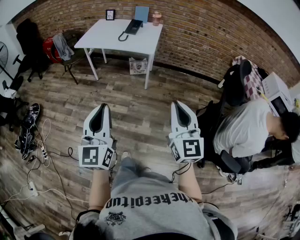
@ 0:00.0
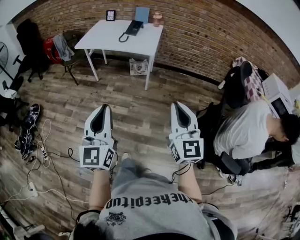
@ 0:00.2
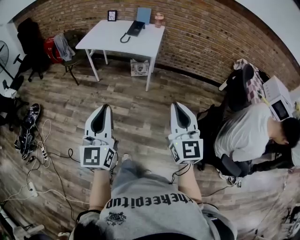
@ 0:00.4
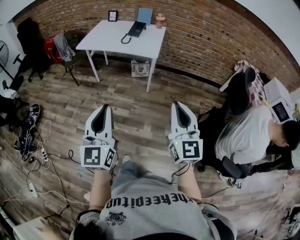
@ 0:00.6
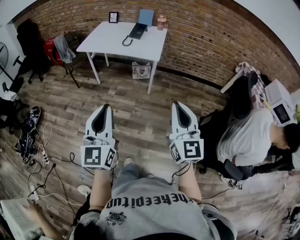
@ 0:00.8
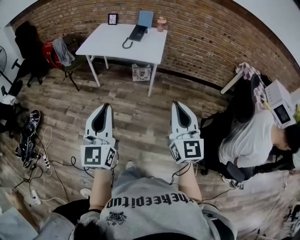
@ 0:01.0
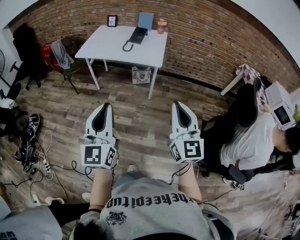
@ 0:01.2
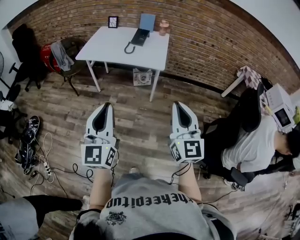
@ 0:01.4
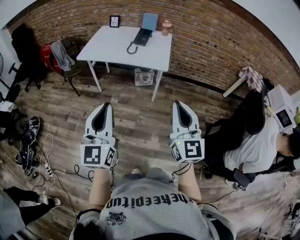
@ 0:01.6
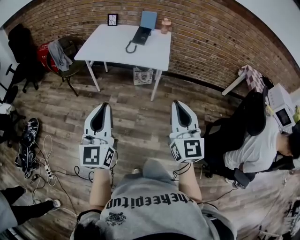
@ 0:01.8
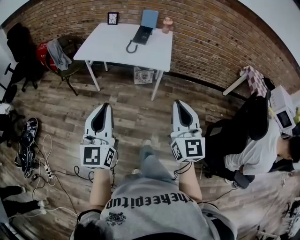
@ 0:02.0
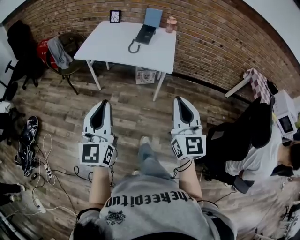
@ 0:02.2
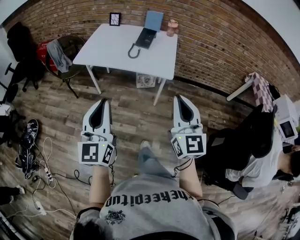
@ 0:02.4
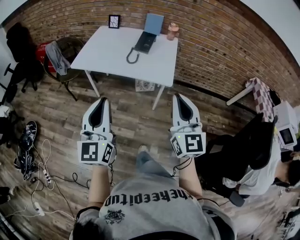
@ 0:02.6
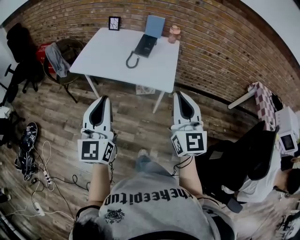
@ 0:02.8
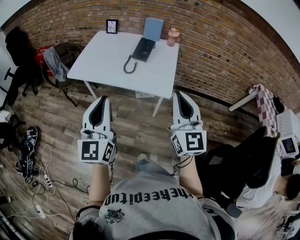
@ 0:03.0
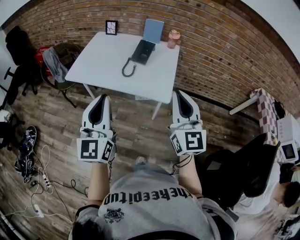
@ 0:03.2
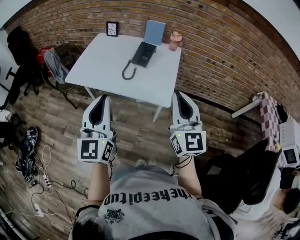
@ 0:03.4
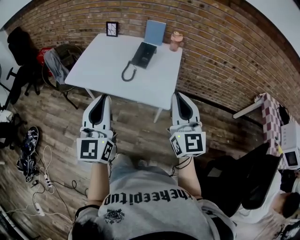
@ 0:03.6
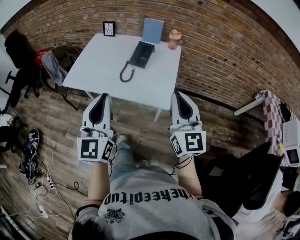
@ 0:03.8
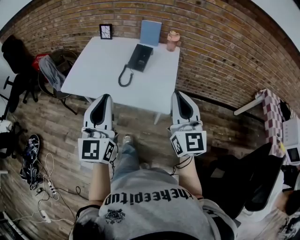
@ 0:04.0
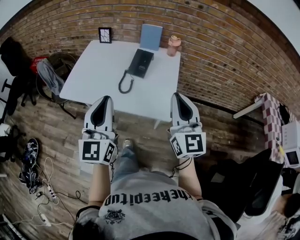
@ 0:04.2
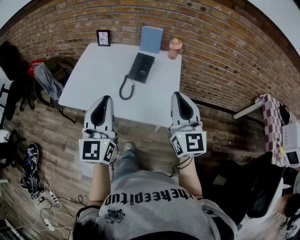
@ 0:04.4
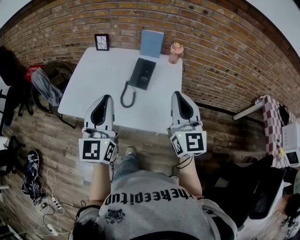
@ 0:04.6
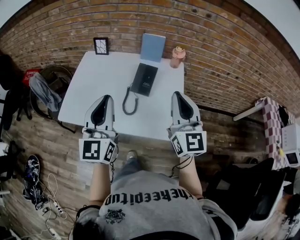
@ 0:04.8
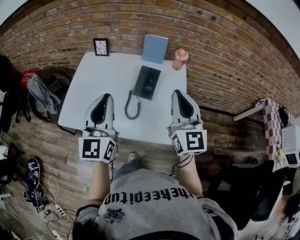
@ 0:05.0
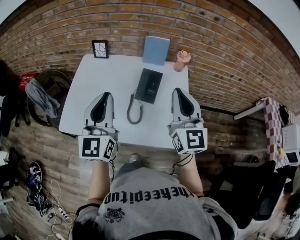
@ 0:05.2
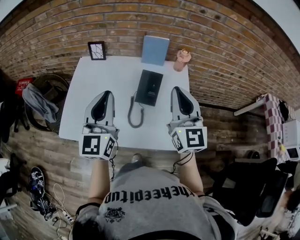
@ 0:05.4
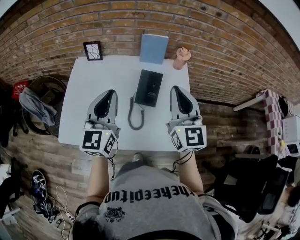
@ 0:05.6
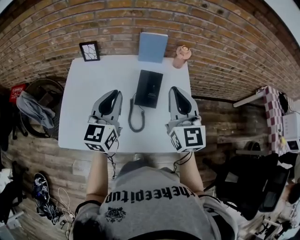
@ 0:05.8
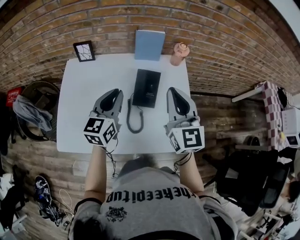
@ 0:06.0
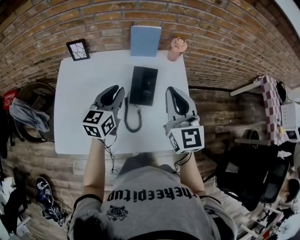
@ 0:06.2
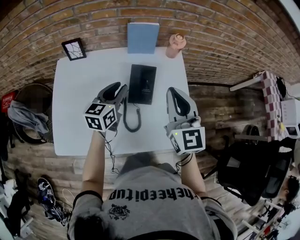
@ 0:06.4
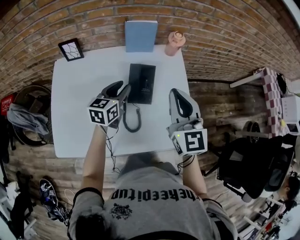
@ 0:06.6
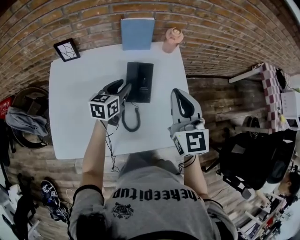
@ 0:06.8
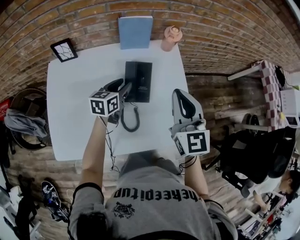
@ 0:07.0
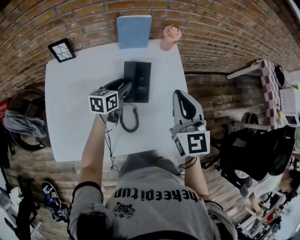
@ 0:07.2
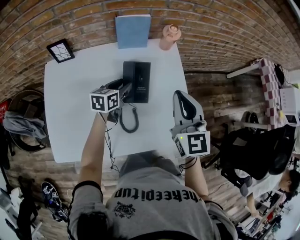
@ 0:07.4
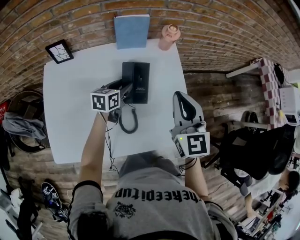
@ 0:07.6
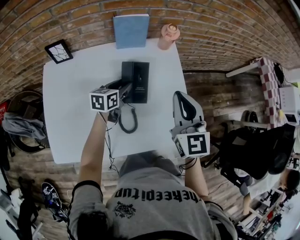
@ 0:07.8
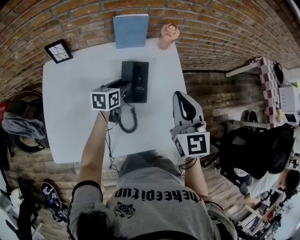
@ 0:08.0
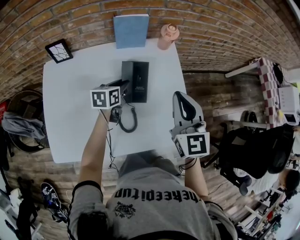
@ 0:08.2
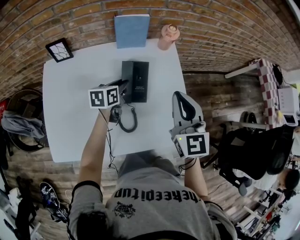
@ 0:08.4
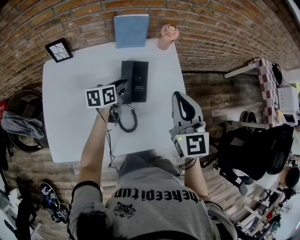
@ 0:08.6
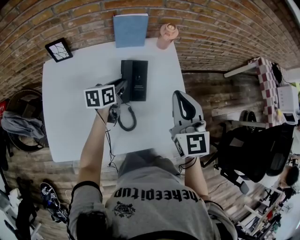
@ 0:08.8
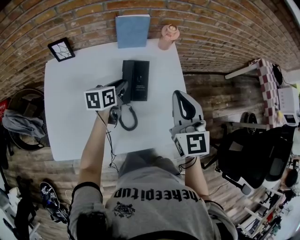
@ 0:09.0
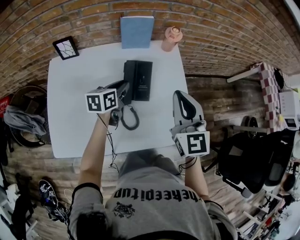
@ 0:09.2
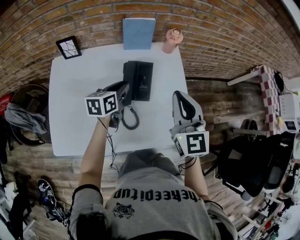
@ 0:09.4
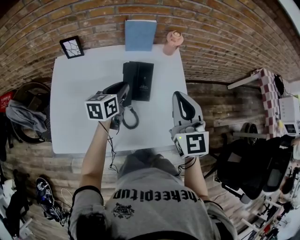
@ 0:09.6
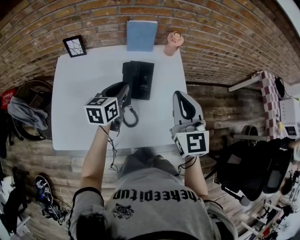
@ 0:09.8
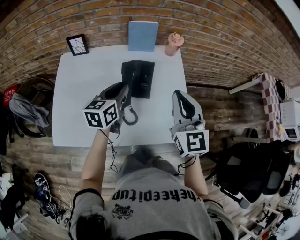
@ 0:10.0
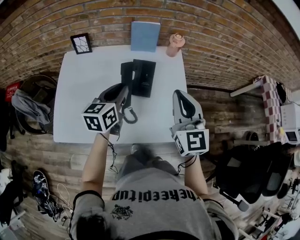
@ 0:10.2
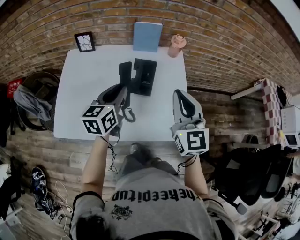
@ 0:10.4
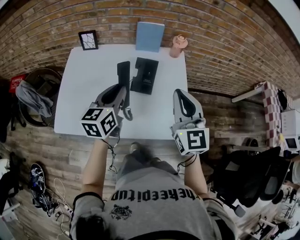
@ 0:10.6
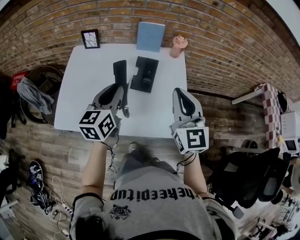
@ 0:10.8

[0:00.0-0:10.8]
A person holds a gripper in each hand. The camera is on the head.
0:00.0 to 0:01.6: Both grippers travel together forward and to the left, about 20 cm.
0:01.6 to 0:03.0: The grippers both shift forward by about 30 cm.
0:03.0 to 0:04.6: Both grippers move forward, roughly 25 cm.
0:04.6 to 0:06.2: The left gripper moves forward and downward, roughly 35 cm, and rotates roughly 40 degrees. The right gripper goes approximately 20 cm forward and to the left.
0:06.2 to 0:07.8: The left gripper is displaced downward and forward by about 15 cm, rotates roughly 30 degrees, and opens up. Meanwhile the right gripper ends up some 5 cm from where it was.
0:07.8 to 0:09.2: The left gripper closes up.
0:09.2 to 0:10.8: The right gripper heads backward and upward, covering about 10 cm. Meanwhile the left gripper moves upward and backward, approximately 25 cm, and rotates approximately 30 degrees.

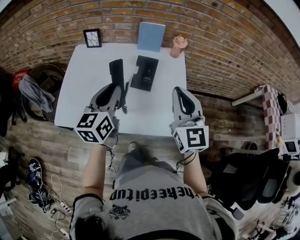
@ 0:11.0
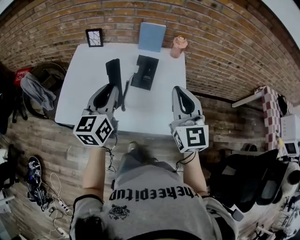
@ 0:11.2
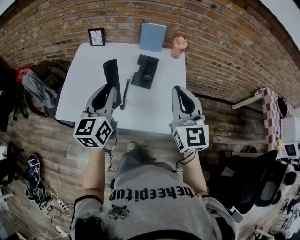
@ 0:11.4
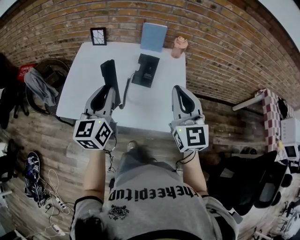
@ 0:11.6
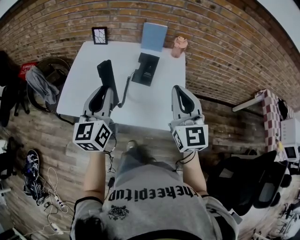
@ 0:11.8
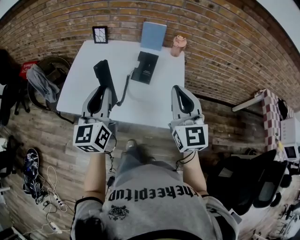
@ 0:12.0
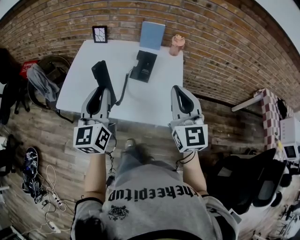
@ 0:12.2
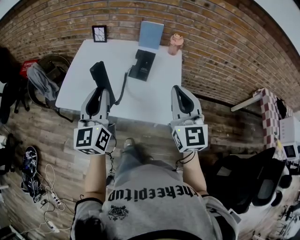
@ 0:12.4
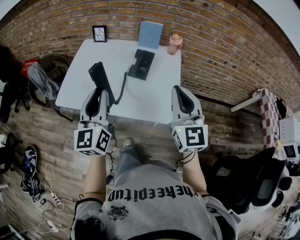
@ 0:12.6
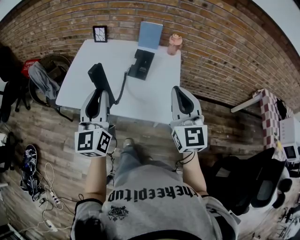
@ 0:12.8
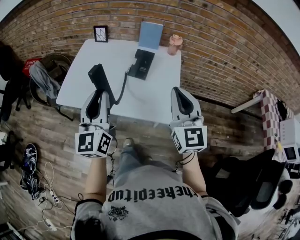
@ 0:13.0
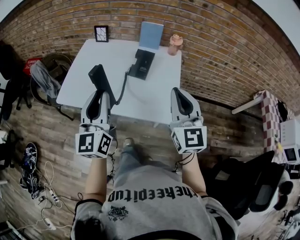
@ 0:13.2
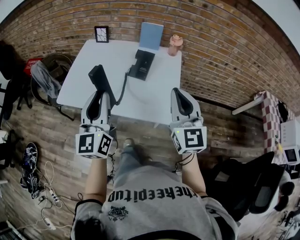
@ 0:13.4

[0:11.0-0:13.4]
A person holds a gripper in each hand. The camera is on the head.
0:11.0 to 0:12.2: The right gripper is displaced backward by about 10 cm. The left gripper travels backward and upward by some 15 cm, and swivels roughly 20 degrees.
0:12.2 to 0:13.4: The left gripper shifts approximately 5 cm backward.

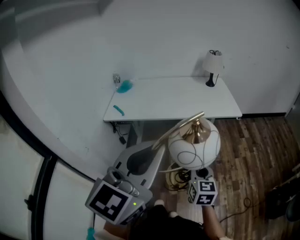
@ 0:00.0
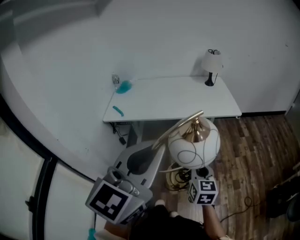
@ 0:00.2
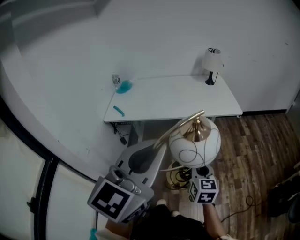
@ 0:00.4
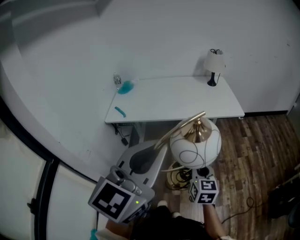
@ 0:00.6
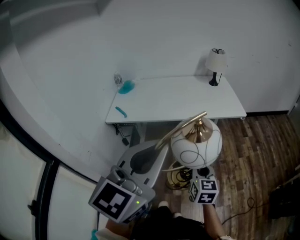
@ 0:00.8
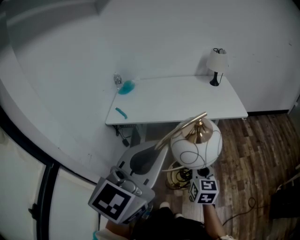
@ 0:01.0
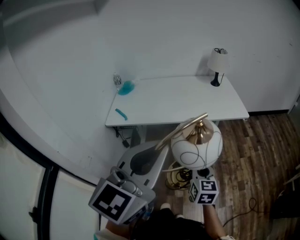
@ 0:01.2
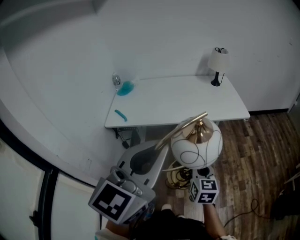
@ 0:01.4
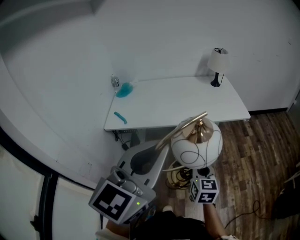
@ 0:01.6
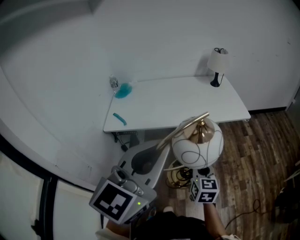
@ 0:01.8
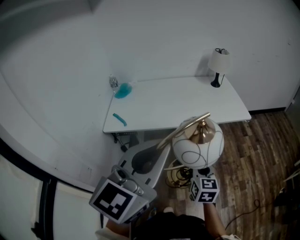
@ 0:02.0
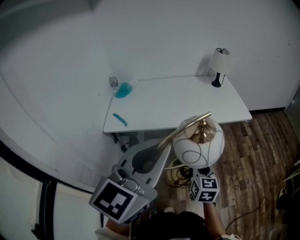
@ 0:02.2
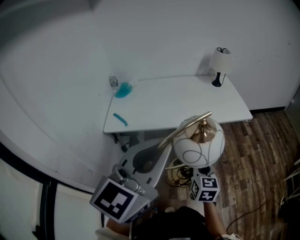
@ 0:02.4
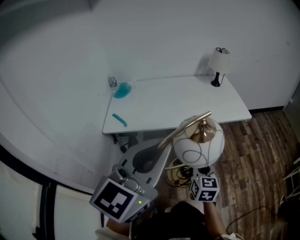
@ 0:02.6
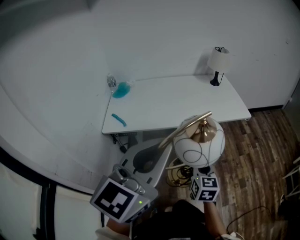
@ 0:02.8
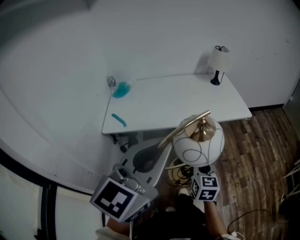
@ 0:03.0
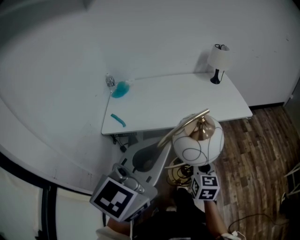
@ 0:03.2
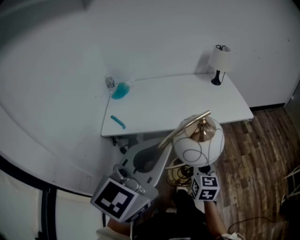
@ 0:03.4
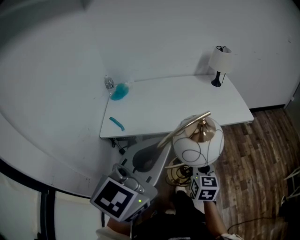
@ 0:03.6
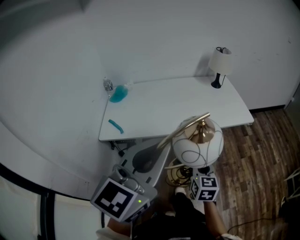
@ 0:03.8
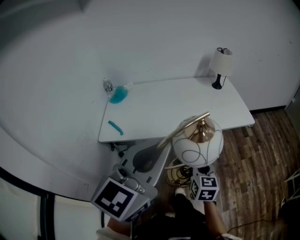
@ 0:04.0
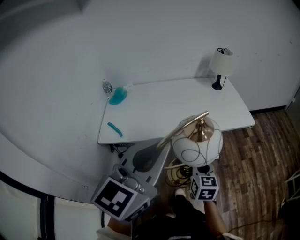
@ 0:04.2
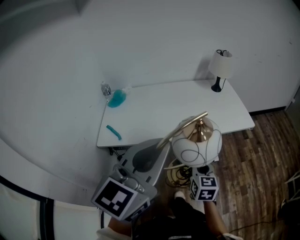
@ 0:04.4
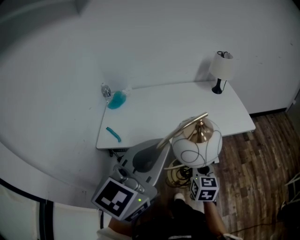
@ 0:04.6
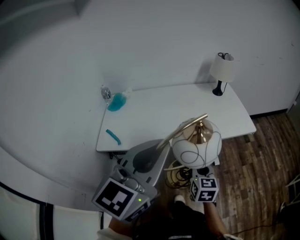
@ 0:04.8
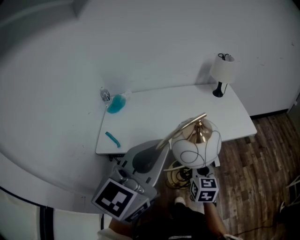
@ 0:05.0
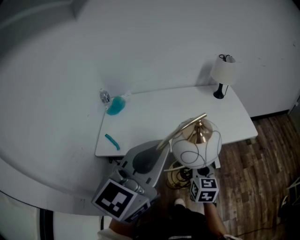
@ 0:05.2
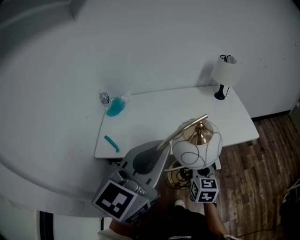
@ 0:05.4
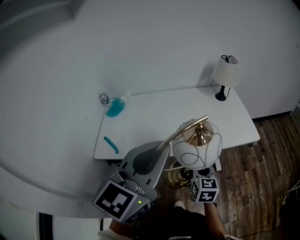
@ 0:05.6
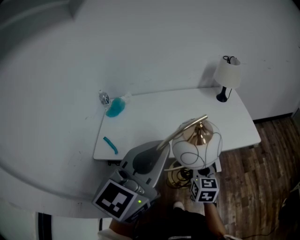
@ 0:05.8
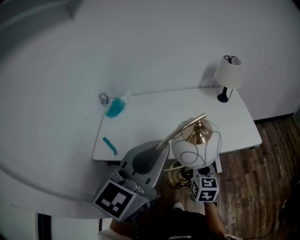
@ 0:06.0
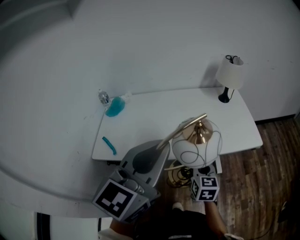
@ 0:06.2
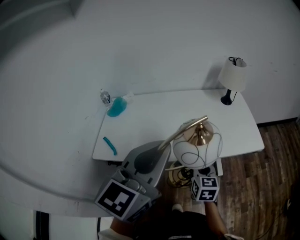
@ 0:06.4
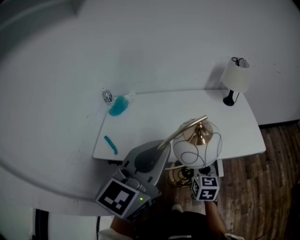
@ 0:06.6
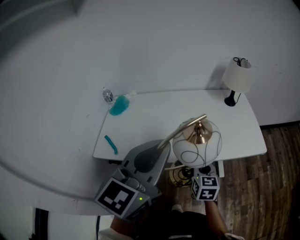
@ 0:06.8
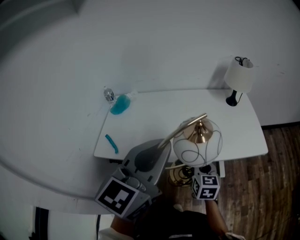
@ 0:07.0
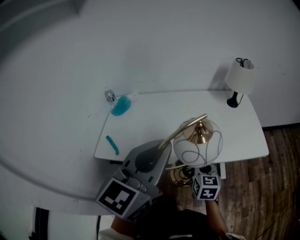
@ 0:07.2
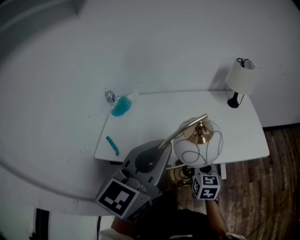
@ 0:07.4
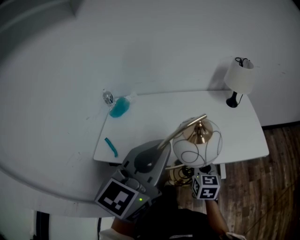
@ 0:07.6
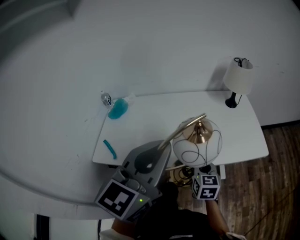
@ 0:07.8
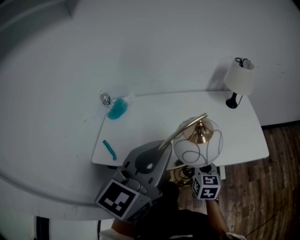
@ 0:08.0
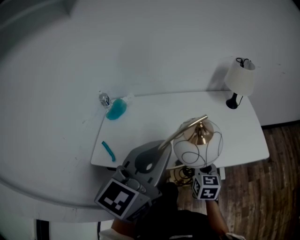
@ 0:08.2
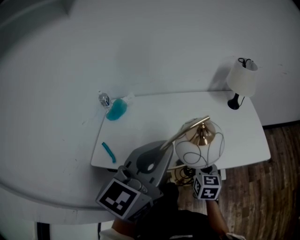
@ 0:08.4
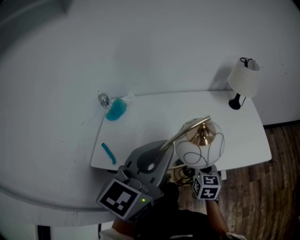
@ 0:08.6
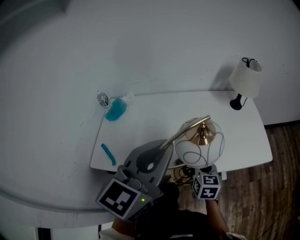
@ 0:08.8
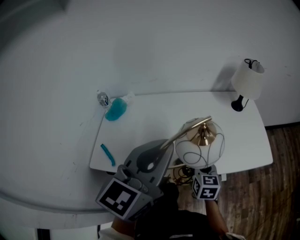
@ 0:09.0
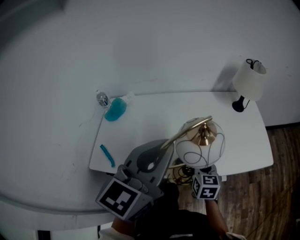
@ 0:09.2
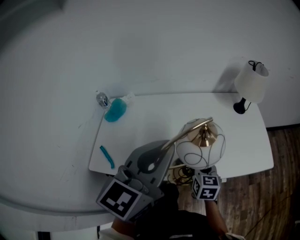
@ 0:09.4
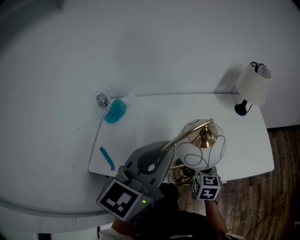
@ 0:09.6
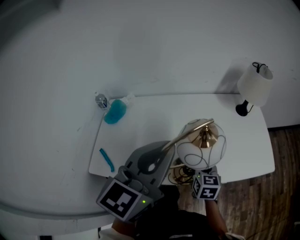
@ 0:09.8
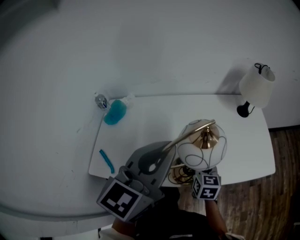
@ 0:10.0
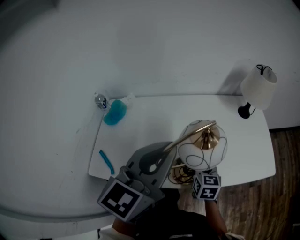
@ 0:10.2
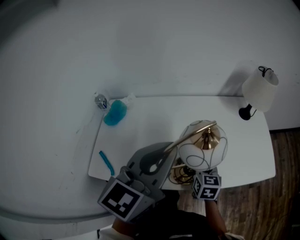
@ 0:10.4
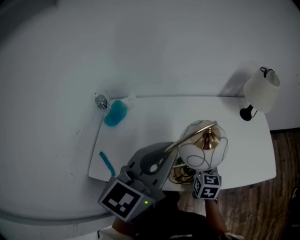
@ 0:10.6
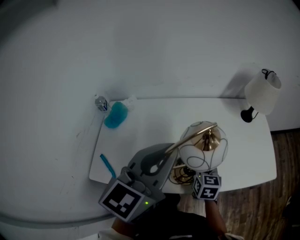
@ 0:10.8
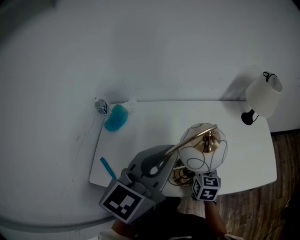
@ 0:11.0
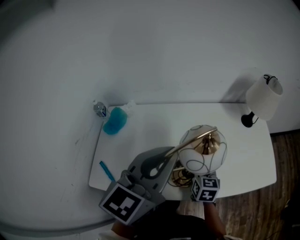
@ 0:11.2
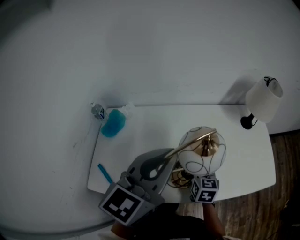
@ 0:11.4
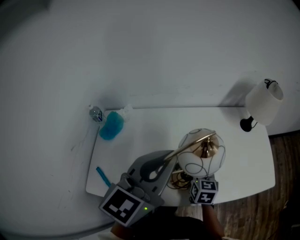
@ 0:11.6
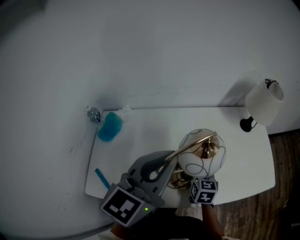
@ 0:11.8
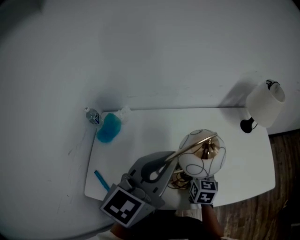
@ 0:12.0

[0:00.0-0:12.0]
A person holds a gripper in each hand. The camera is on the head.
0:00.0 to 0:01.6: The grippers both shift forward and to the left by about 10 cm.
0:01.6 to 0:03.0: The left gripper moves approximately 5 cm.
0:03.0 to 0:04.4: The two grippers go approximately 10 cm forward.
0:04.4 to 0:06.0: Both grippers move forward, approximately 15 cm.
0:06.0 to 0:07.6: Both grippers move forward, approximately 5 cm.
0:07.6 to 0:09.0: Both grippers move forward, roughly 5 cm.
0:09.0 to 0:10.4: The grippers both shift forward by about 10 cm.
0:10.4 to 0:12.0: The grippers both shift forward by roughly 10 cm.
